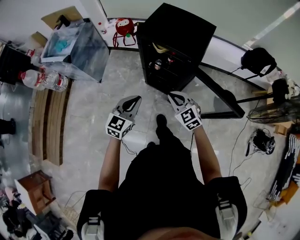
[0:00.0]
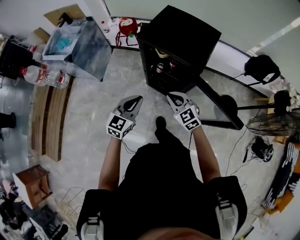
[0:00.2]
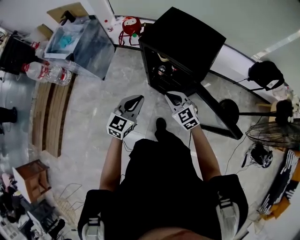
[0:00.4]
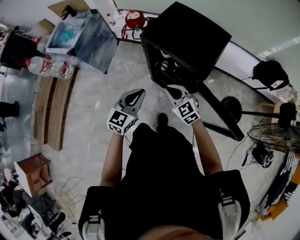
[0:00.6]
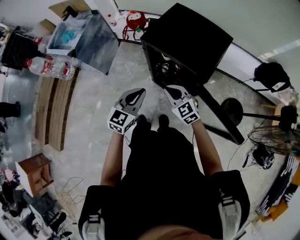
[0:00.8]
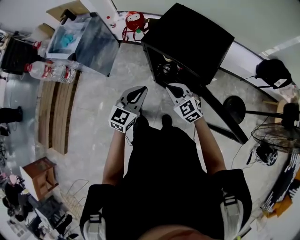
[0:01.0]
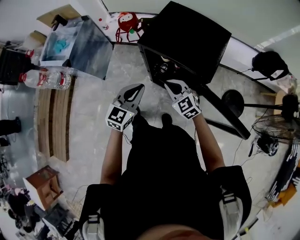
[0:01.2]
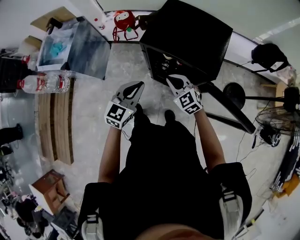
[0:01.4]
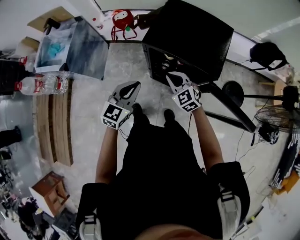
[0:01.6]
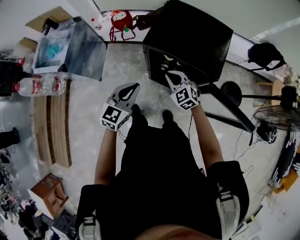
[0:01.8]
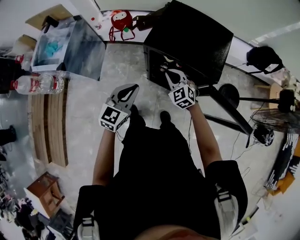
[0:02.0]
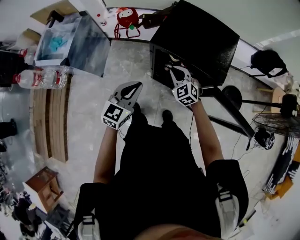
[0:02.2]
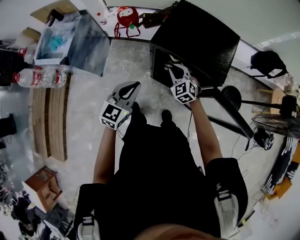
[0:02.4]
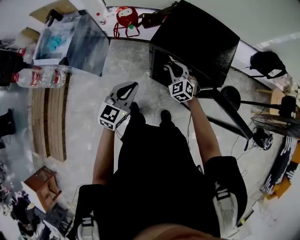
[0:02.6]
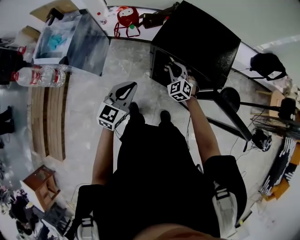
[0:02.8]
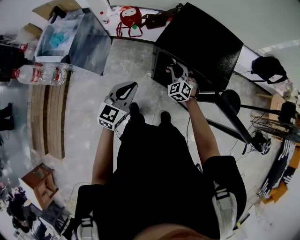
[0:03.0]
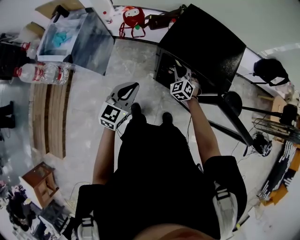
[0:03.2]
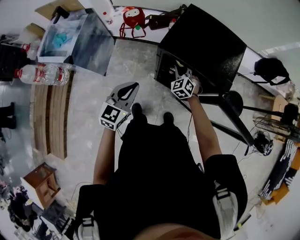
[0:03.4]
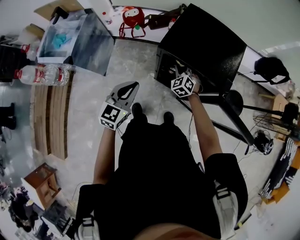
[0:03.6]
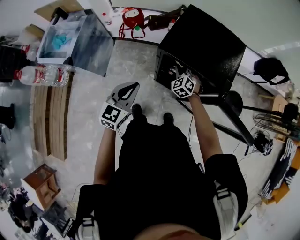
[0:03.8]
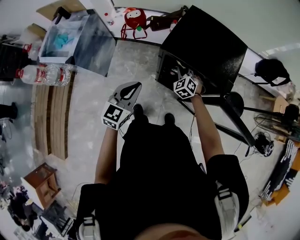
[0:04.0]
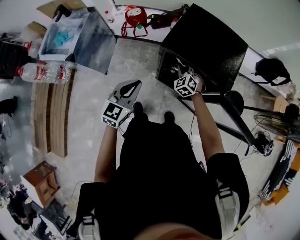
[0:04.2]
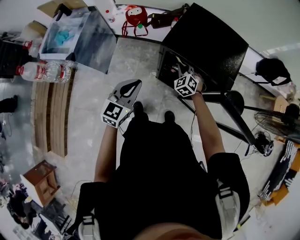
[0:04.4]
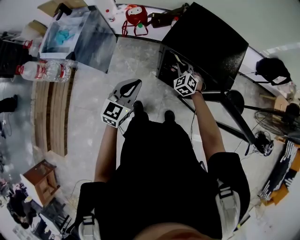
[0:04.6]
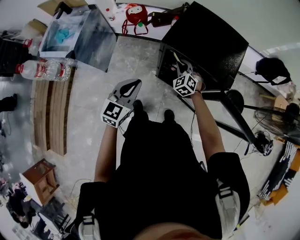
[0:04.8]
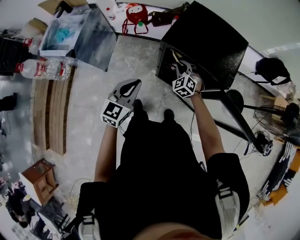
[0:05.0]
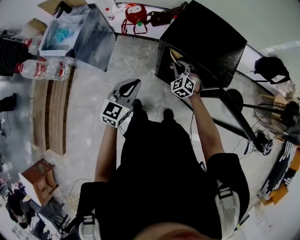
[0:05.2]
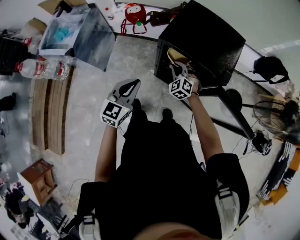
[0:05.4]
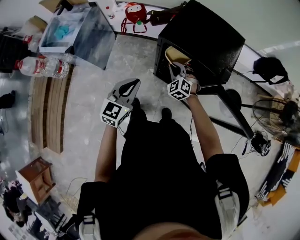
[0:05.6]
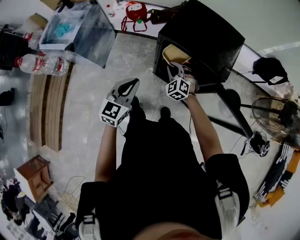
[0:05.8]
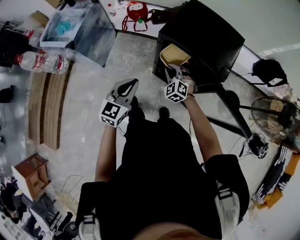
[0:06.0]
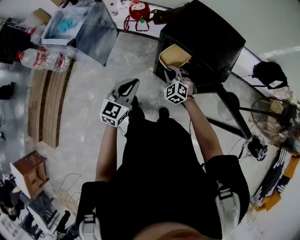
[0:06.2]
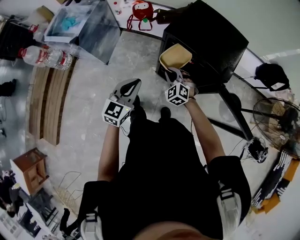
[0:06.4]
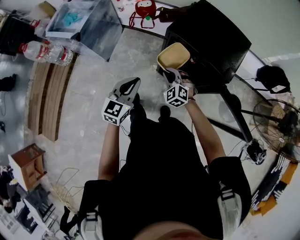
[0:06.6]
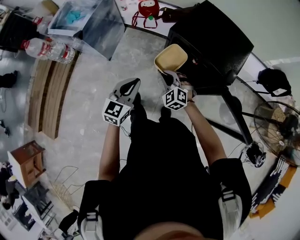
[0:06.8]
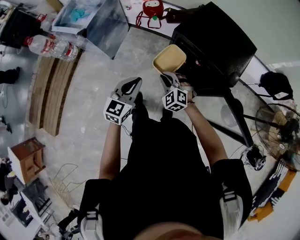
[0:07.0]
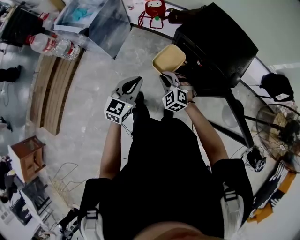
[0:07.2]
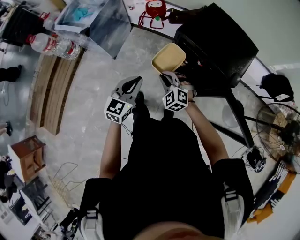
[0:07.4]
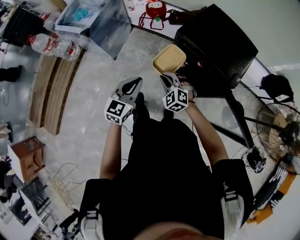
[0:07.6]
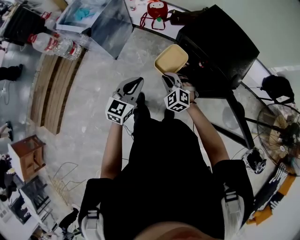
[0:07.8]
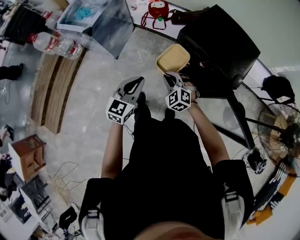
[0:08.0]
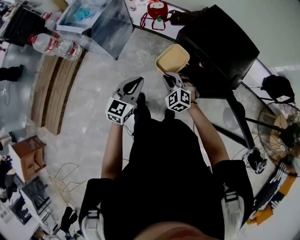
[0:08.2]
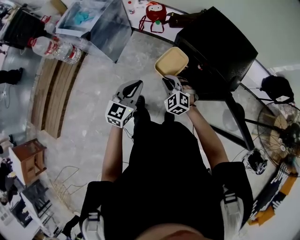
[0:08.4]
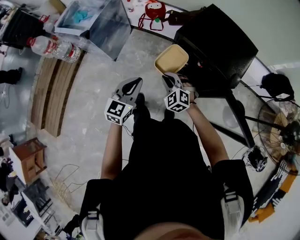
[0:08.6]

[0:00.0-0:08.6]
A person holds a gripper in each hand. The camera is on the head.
0:00.0 to 0:01.4: The grippers both shift forward by roughly 20 cm.
0:01.4 to 0:02.8: The left gripper is displaced to the left by approximately 5 cm. The right gripper travels forward and downward by about 10 cm, and swivels some 30 degrees.
0:02.8 to 0:04.4: There are only small adjustments of the grippers.
0:04.4 to 0:05.8: The right gripper is displaced backward by about 10 cm; the left gripper heads backward, covering about 5 cm.
0:05.8 to 0:07.2: The left gripper moves roughly 5 cm. Meanwhile the right gripper travels backward and to the left by some 15 cm, and turns by roughly 20 degrees.
0:07.2 to 0:08.6: The grippers make only small movements.

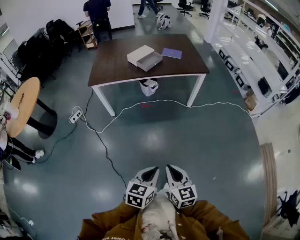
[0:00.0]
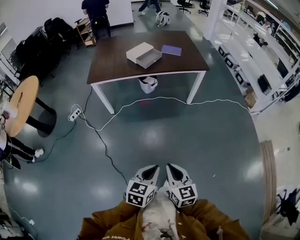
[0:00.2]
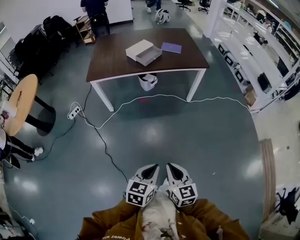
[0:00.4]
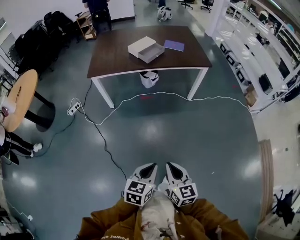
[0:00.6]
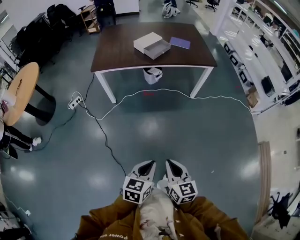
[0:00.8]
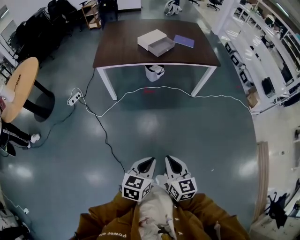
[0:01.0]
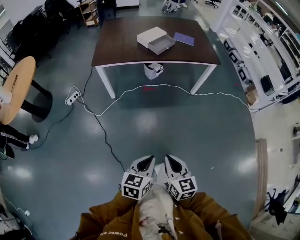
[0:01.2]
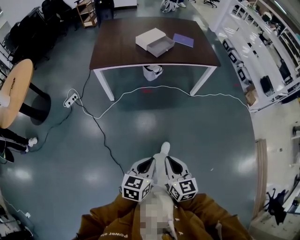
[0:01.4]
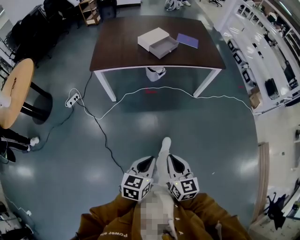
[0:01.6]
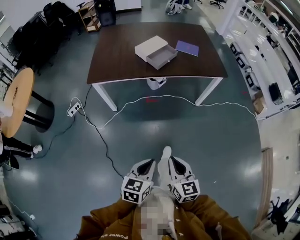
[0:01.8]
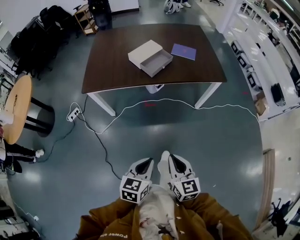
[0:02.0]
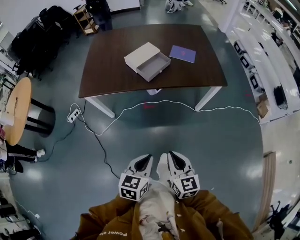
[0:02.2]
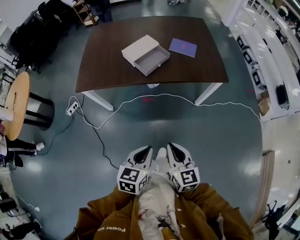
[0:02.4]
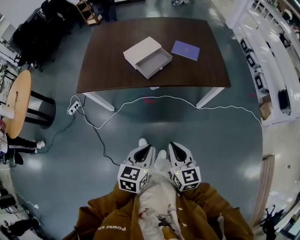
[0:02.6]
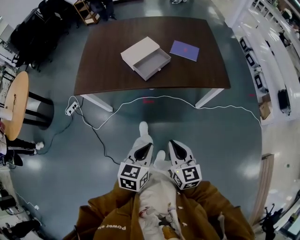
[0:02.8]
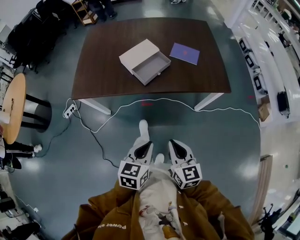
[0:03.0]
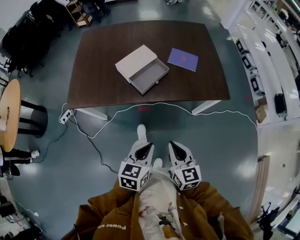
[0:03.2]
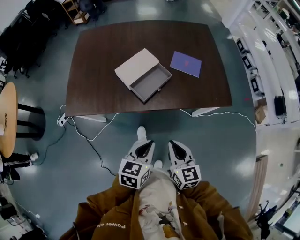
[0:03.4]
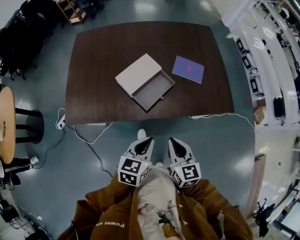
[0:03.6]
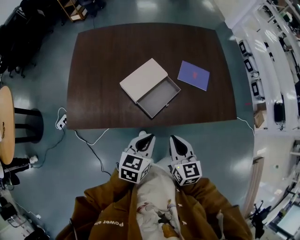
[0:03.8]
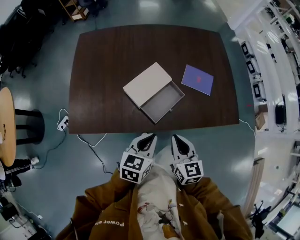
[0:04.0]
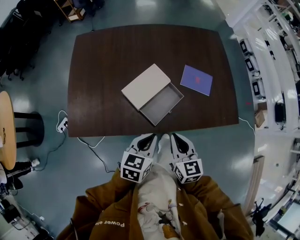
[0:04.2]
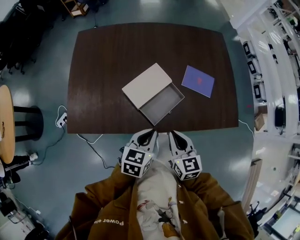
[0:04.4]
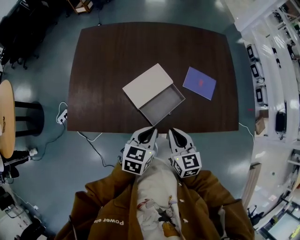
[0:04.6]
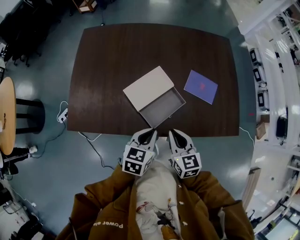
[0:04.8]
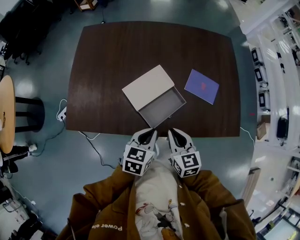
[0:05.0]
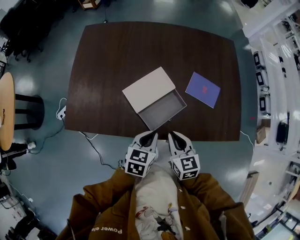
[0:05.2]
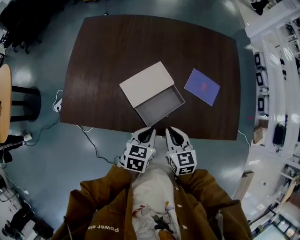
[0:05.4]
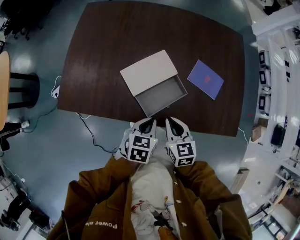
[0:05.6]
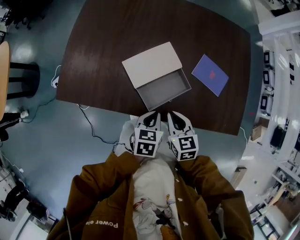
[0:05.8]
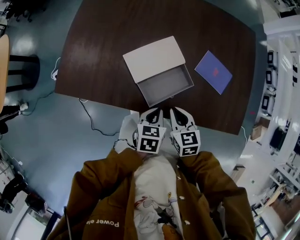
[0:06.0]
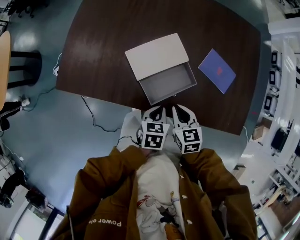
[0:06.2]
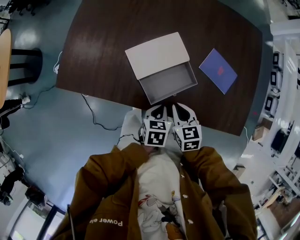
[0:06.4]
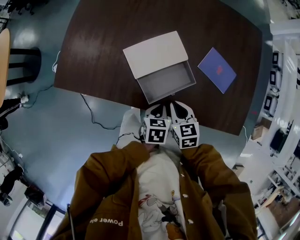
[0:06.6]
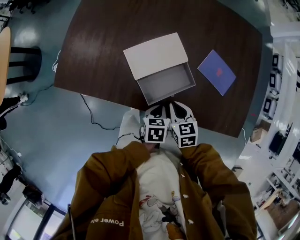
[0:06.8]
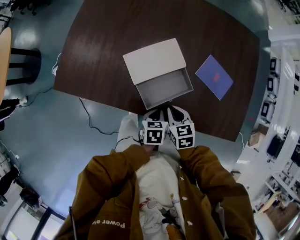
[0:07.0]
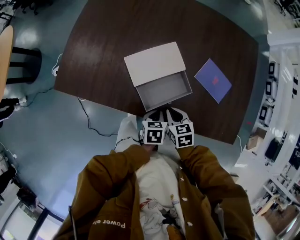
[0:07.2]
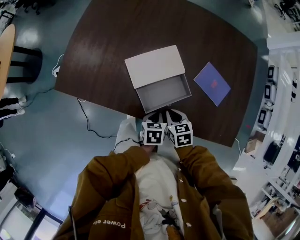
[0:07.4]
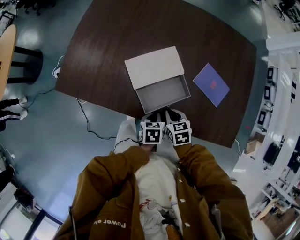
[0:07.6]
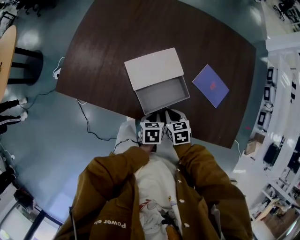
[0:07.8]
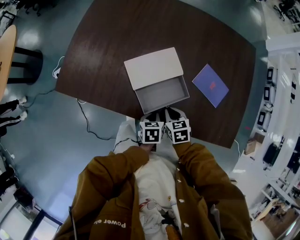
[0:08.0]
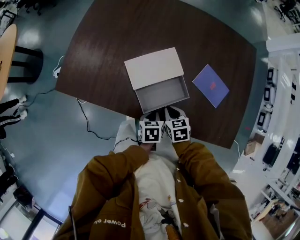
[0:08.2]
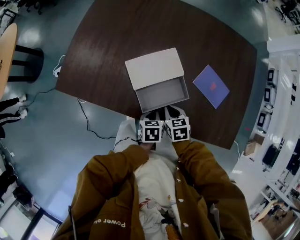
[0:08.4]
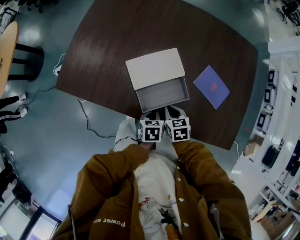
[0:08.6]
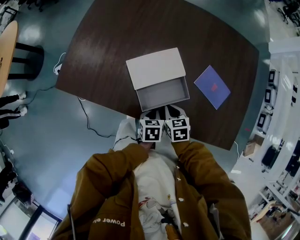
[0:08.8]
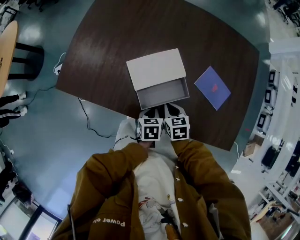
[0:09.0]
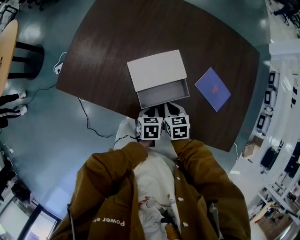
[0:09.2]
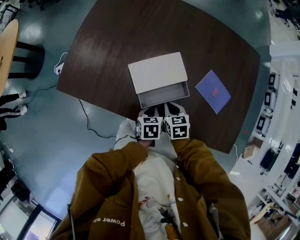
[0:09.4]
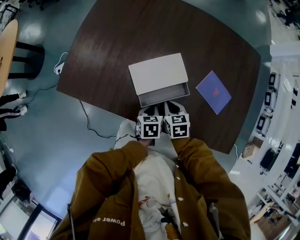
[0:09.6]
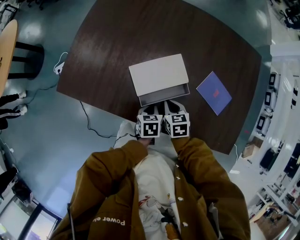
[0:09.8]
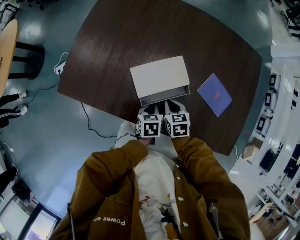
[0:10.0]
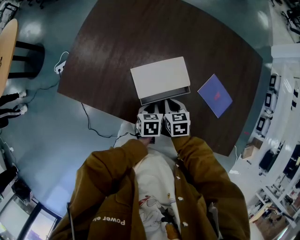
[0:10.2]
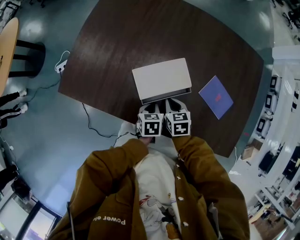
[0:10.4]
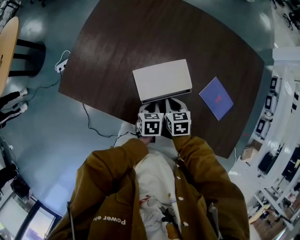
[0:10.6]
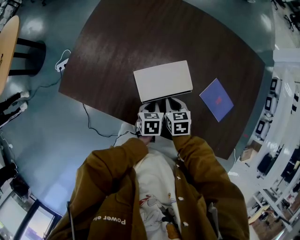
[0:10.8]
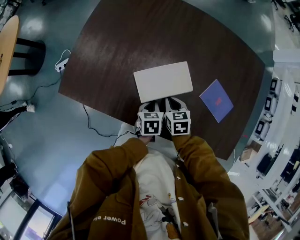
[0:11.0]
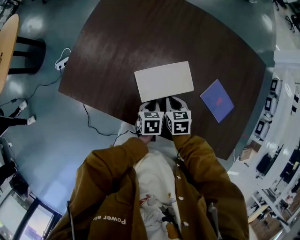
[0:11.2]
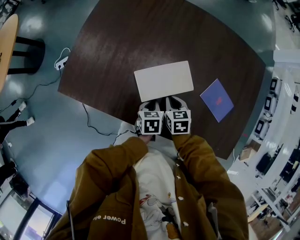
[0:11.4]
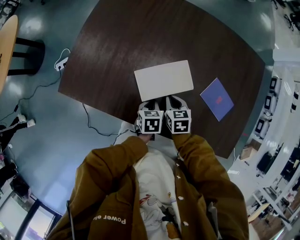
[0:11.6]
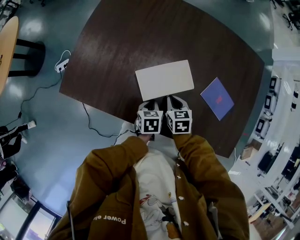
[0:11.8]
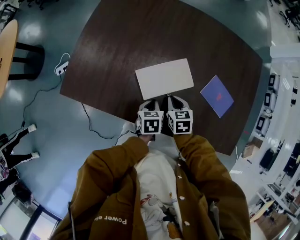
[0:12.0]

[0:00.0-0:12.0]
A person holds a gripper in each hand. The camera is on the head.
0:00.0 to 0:01.6: The right gripper travels forward and to the left by some 15 cm; the left gripper goes roughly 20 cm to the left and forward.
0:01.6 to 0:03.0: Both grippers are carried forward, about 40 cm.
0:03.0 to 0:04.4: Both grippers move forward, about 35 cm.
0:04.4 to 0:06.0: The left gripper shifts roughly 15 cm downward, and swivels approximately 30 degrees; the right gripper travels downward and forward by about 15 cm, and rotates about 20 degrees.
0:06.0 to 0:07.6: Both grippers move downward, about 10 cm.
0:07.6 to 0:09.0: The grippers stay close to where they were, moving slightly.
0:09.0 to 0:10.4: Both grippers travel together forward, some 5 cm.
0:10.4 to 0:12.0: There are only small adjustments of the grippers.

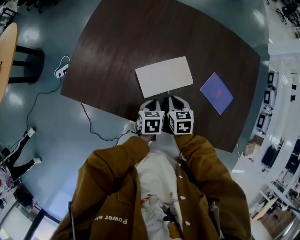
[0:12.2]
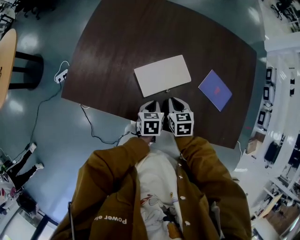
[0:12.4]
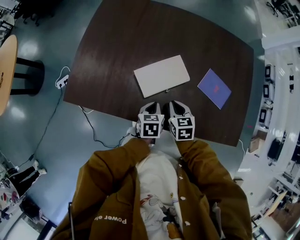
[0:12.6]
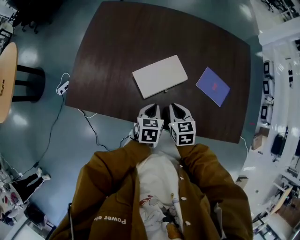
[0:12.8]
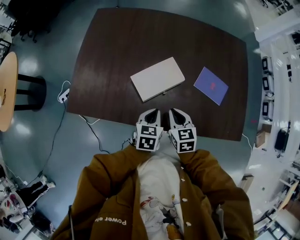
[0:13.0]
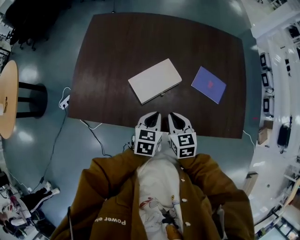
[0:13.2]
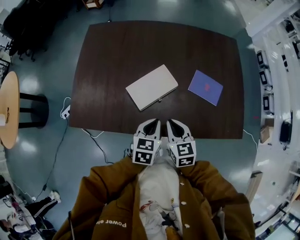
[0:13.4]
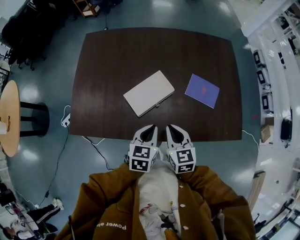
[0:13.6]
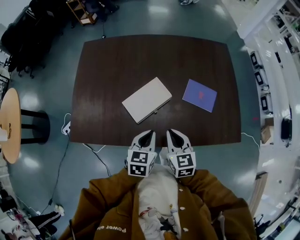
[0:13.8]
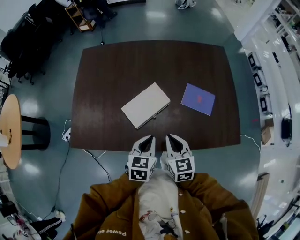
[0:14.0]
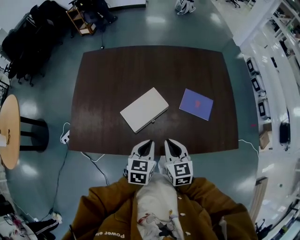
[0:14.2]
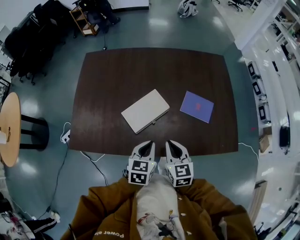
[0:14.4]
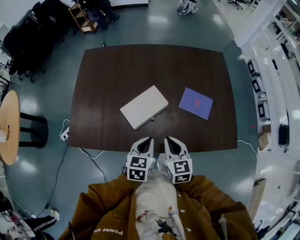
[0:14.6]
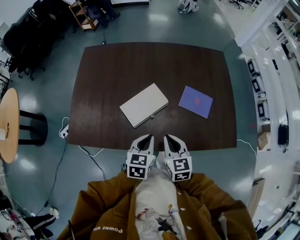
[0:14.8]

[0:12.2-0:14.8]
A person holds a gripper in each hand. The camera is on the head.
0:12.2 to 0:13.4: The left gripper goes some 15 cm upward, and swivels roughly 30 degrees. The right gripper moves upward and backward, some 15 cm.
0:13.4 to 0:14.8: The grippers stay close to where they were, moving slightly.
